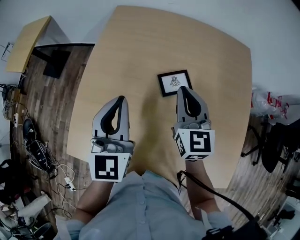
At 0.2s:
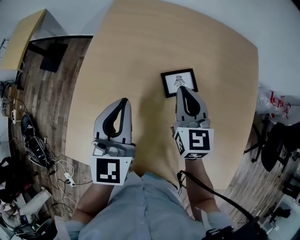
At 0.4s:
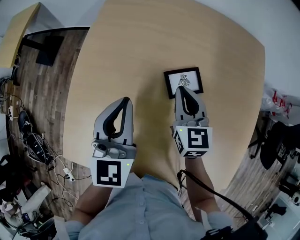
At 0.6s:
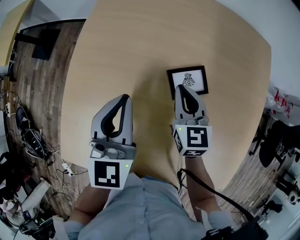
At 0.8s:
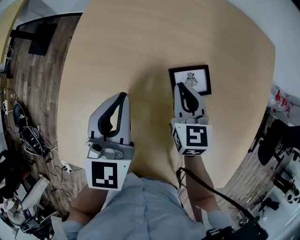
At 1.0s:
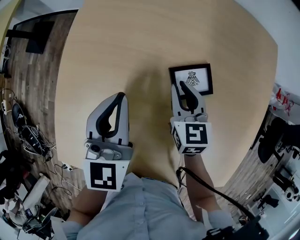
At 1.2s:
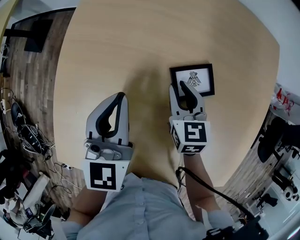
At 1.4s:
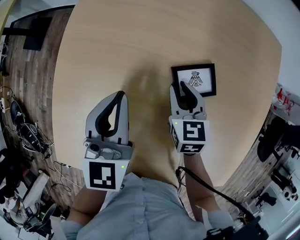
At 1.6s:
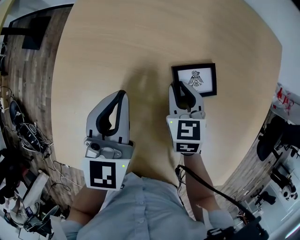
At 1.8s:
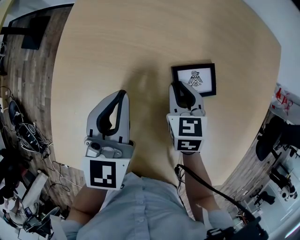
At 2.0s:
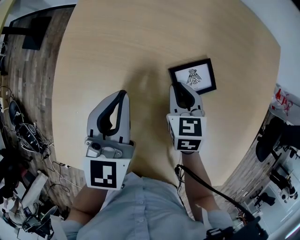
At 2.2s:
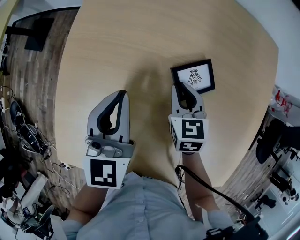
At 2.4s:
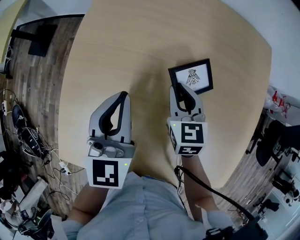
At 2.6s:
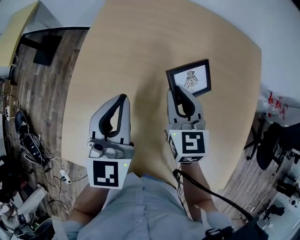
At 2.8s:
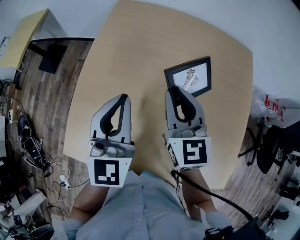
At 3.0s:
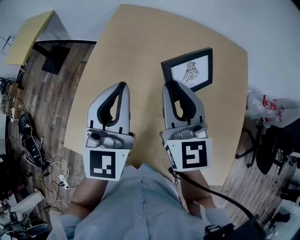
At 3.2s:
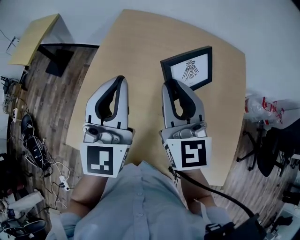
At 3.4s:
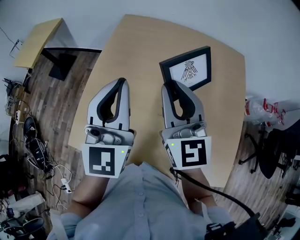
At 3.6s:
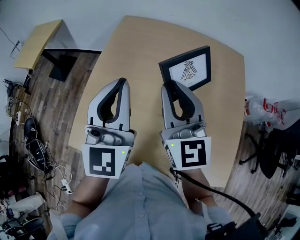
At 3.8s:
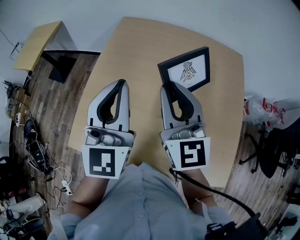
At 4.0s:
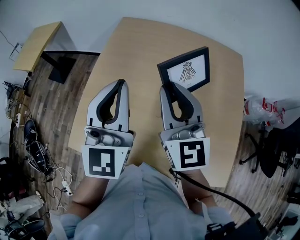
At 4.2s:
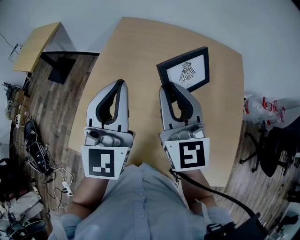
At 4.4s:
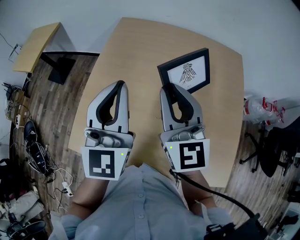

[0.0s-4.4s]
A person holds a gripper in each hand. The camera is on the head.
0.0s to 1.4s: The right gripper moves downward, some 20 cm, rotates approximately 30 degrees, and opens up; the left gripper goes some 15 cm downward and forward.
1.4s to 3.0s: The left gripper travels upward by about 15 cm, and rotates about 20 degrees. Meanwhile the right gripper shifts about 25 cm upward, and tips its fingers upward by about 40 degrees.
3.0s to 4.4s: The grippers move only a little.

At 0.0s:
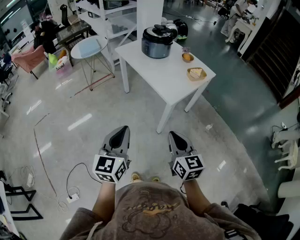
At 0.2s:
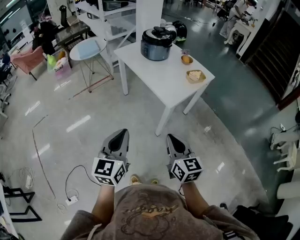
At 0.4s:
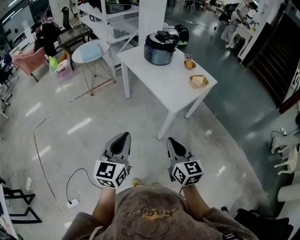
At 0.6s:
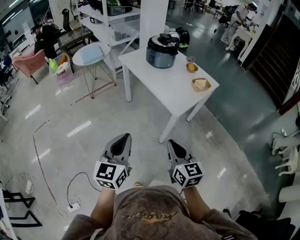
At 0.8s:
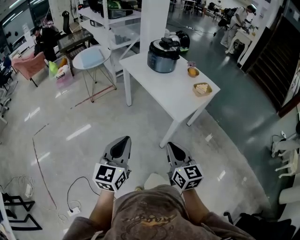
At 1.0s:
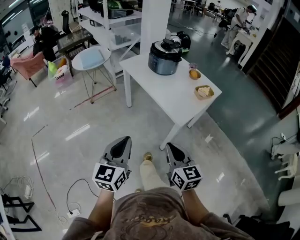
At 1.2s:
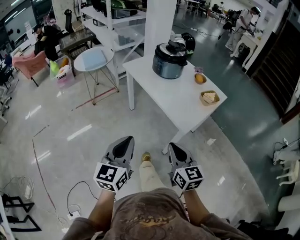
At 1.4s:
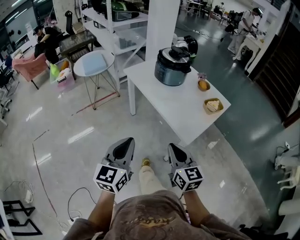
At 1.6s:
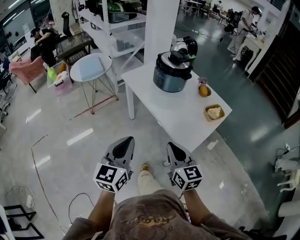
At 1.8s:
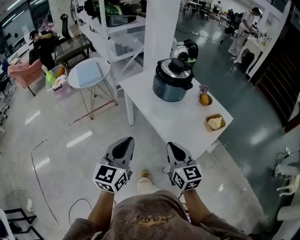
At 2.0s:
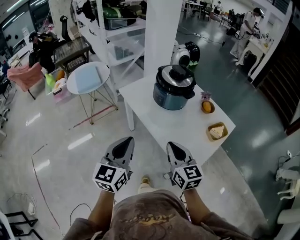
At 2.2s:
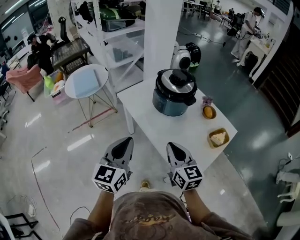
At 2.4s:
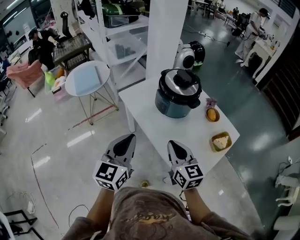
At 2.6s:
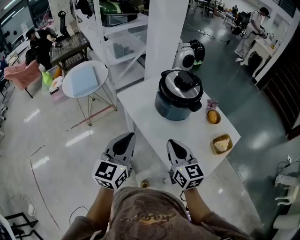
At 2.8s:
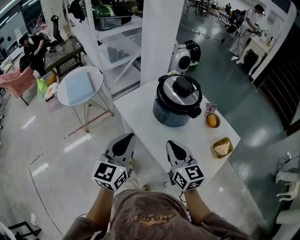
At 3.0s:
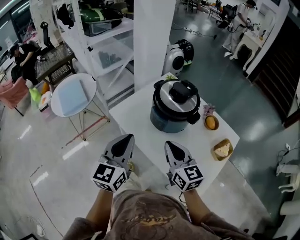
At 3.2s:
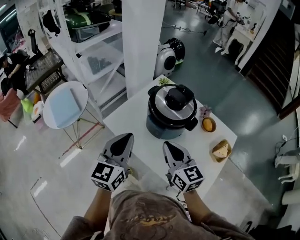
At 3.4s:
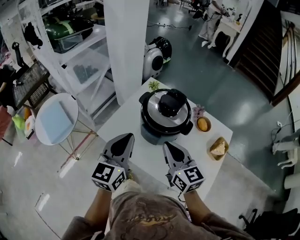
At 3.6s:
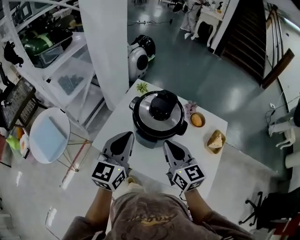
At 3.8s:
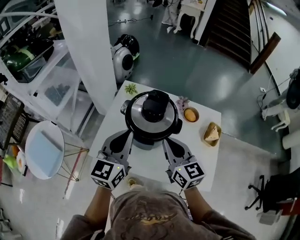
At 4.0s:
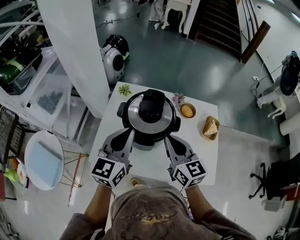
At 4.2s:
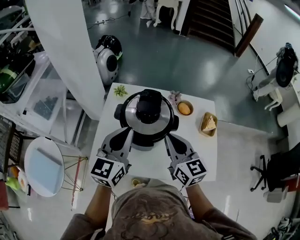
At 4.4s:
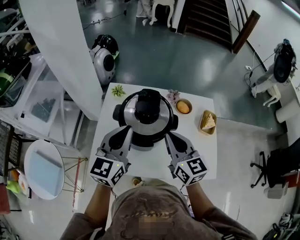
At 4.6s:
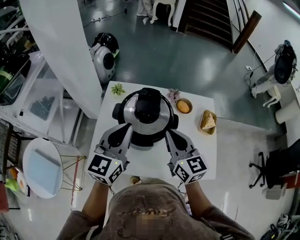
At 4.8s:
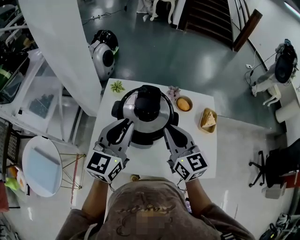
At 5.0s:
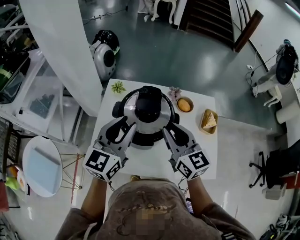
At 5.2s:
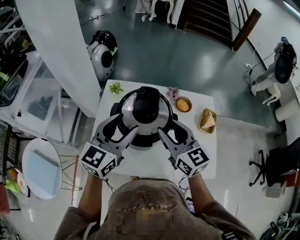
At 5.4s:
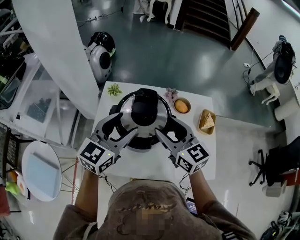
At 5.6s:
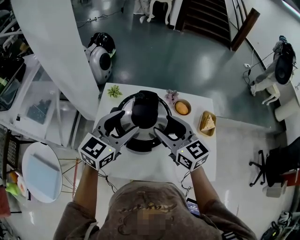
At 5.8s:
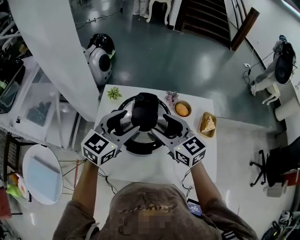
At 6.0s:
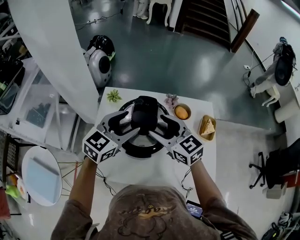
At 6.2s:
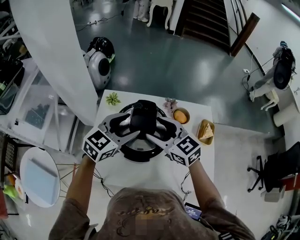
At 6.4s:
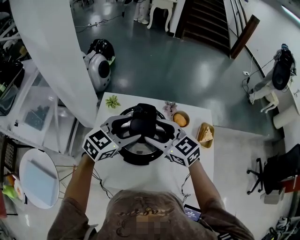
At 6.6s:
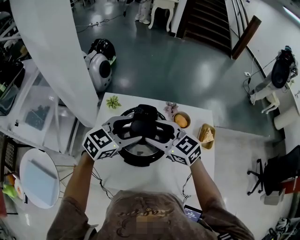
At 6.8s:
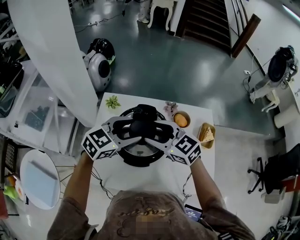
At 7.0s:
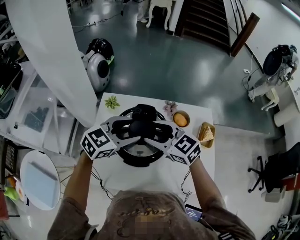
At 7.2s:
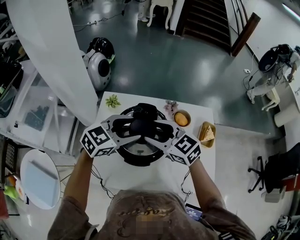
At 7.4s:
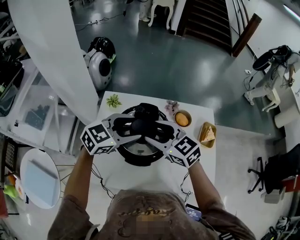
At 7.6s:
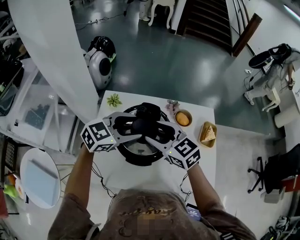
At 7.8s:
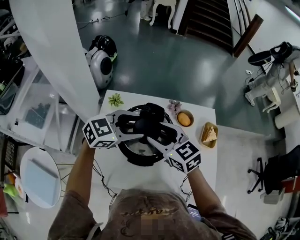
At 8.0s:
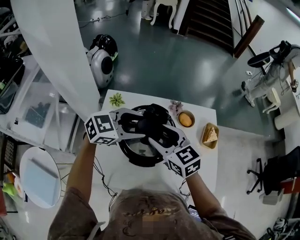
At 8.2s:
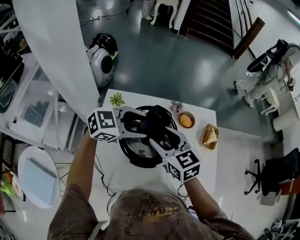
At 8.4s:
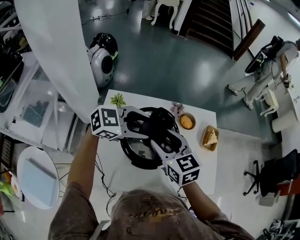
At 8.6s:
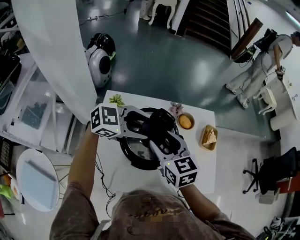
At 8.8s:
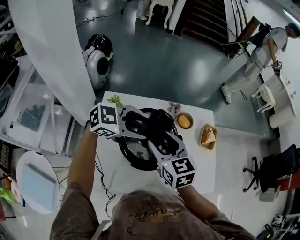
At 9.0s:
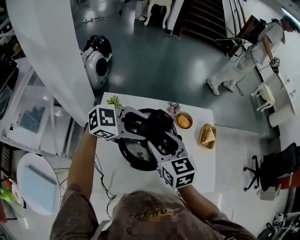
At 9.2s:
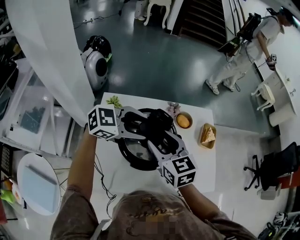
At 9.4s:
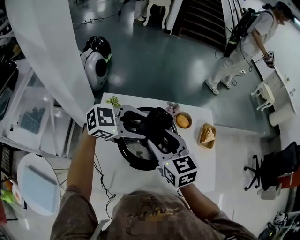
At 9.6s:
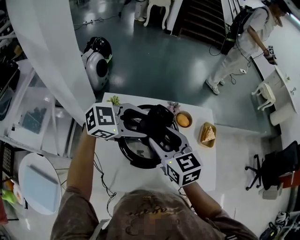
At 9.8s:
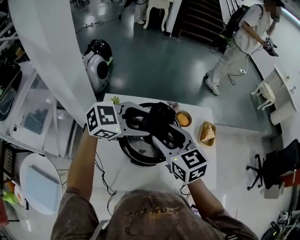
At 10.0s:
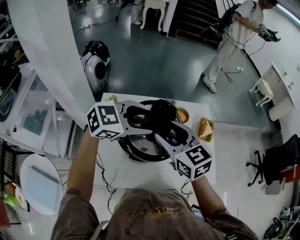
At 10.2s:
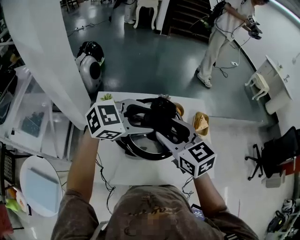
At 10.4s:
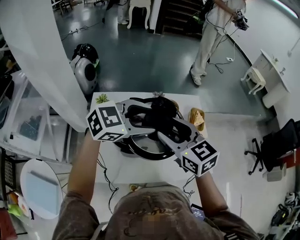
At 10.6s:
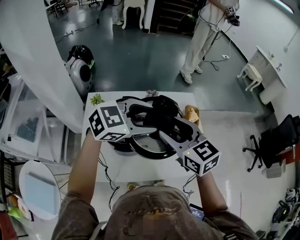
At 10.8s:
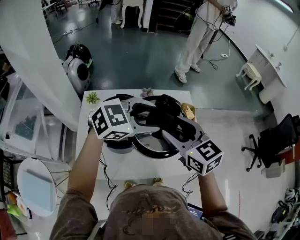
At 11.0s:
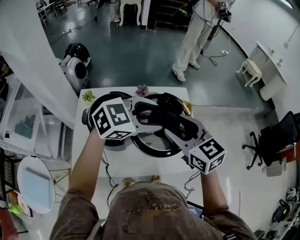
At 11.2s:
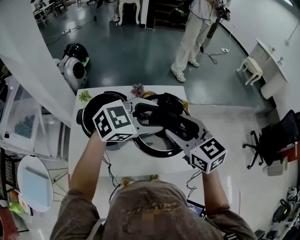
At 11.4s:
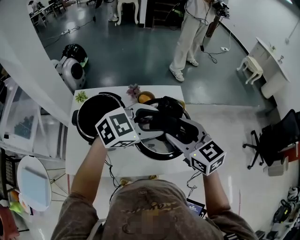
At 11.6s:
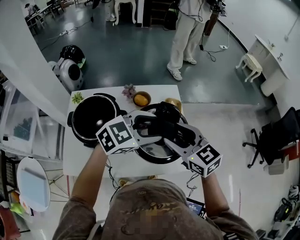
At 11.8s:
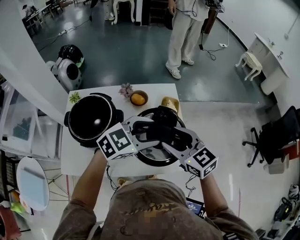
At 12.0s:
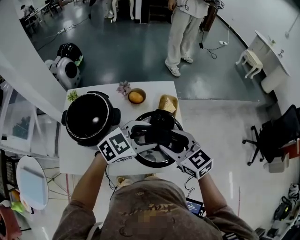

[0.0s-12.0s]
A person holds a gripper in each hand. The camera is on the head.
0.0s to 1.6s: The grippers both shift forward by about 25 cm.
1.6s to 3.0s: The two grippers go roughly 35 cm forward.
3.0s to 4.4s: The left gripper shifts by approximately 25 cm, and swivels about 40 degrees. The right gripper moves approximately 15 cm, and rotates some 40 degrees.
4.4s to 6.0s: The two grippers go approximately 10 cm forward. The left gripper turns by about 30 degrees, and opens its fingers, while the right gripper turns by roughly 20 degrees, and opens.
6.0s to 7.6s: The left gripper rotates roughly 20 degrees.
7.6s to 9.0s: The left gripper rotates some 20 degrees, while the right gripper rotates about 30 degrees.
9.0s to 10.4s: Both grippers travel together to the right and upward, some 10 cm.
10.4s to 12.0s: The two grippers go about 25 cm to the right.

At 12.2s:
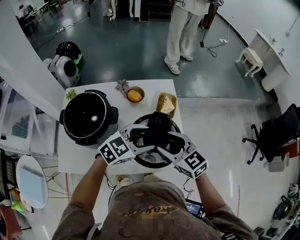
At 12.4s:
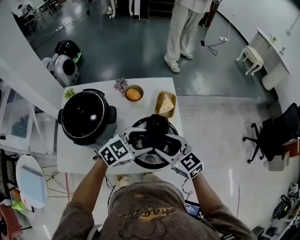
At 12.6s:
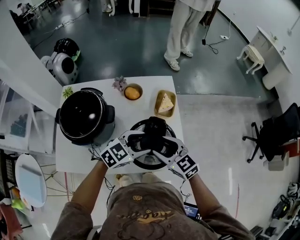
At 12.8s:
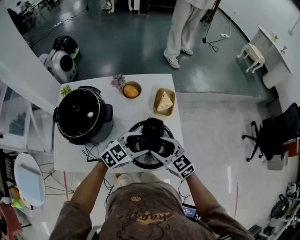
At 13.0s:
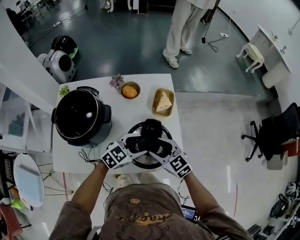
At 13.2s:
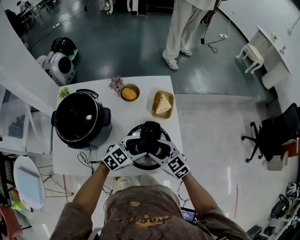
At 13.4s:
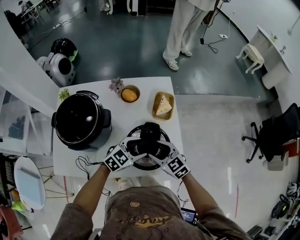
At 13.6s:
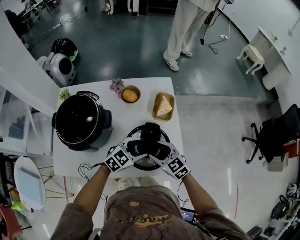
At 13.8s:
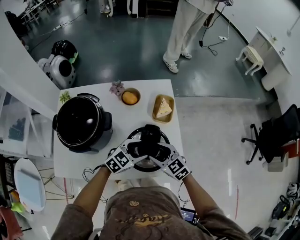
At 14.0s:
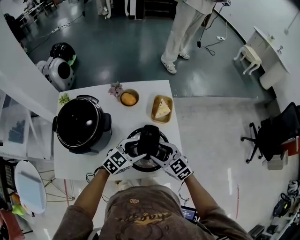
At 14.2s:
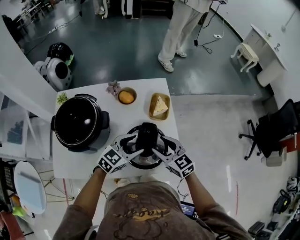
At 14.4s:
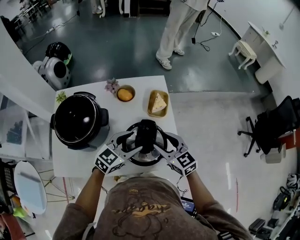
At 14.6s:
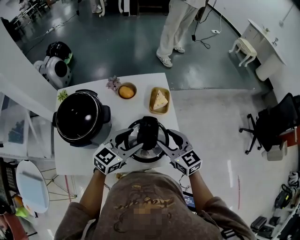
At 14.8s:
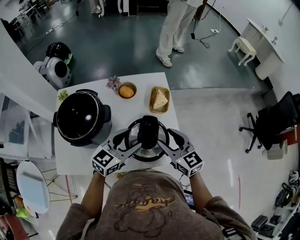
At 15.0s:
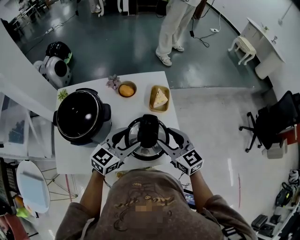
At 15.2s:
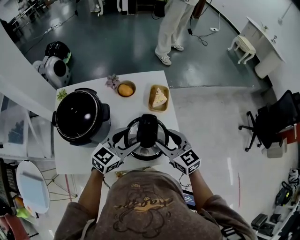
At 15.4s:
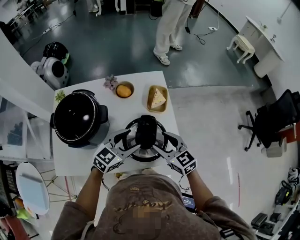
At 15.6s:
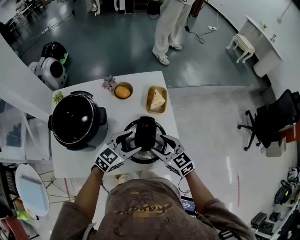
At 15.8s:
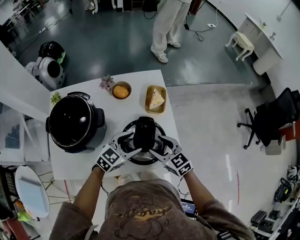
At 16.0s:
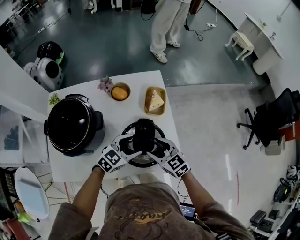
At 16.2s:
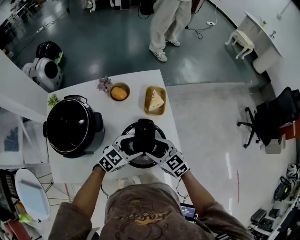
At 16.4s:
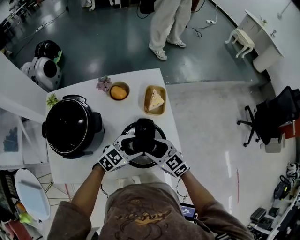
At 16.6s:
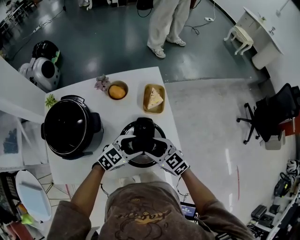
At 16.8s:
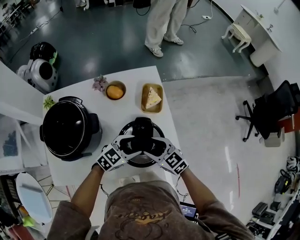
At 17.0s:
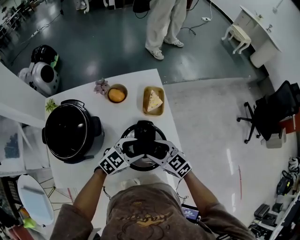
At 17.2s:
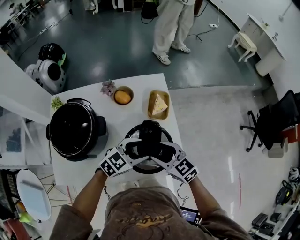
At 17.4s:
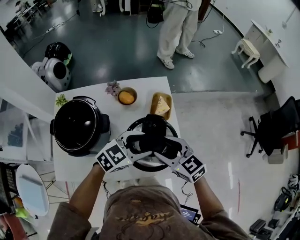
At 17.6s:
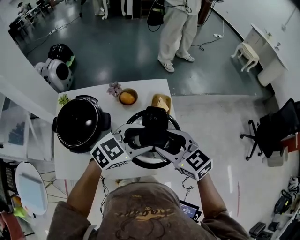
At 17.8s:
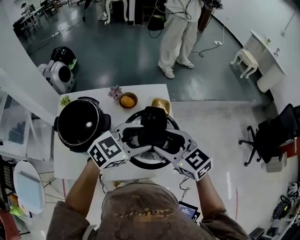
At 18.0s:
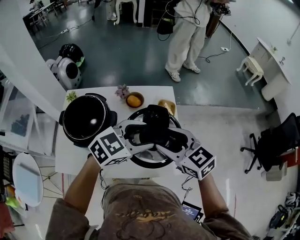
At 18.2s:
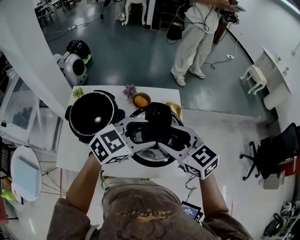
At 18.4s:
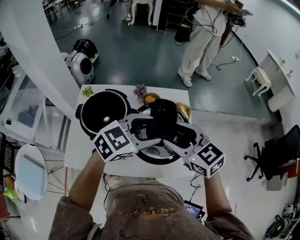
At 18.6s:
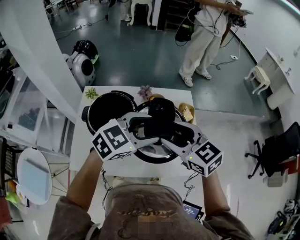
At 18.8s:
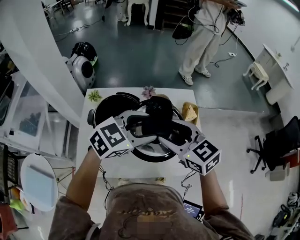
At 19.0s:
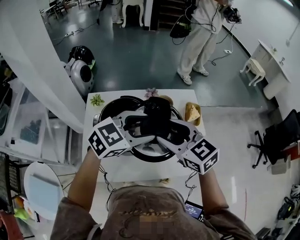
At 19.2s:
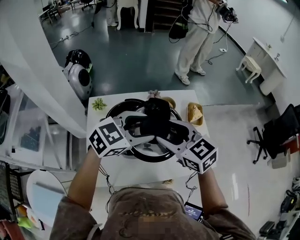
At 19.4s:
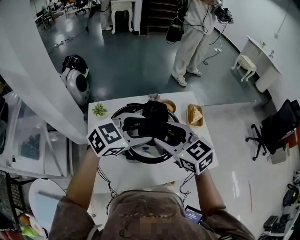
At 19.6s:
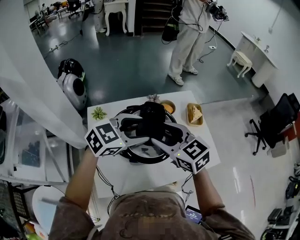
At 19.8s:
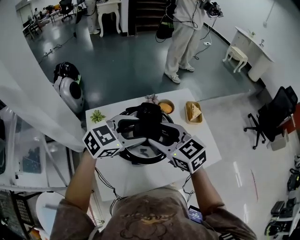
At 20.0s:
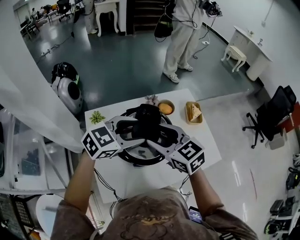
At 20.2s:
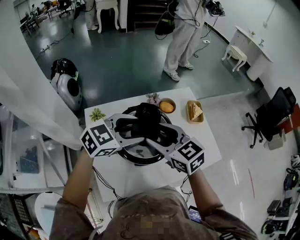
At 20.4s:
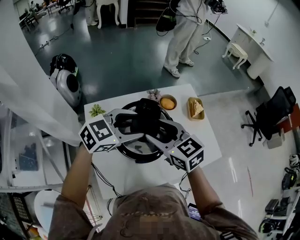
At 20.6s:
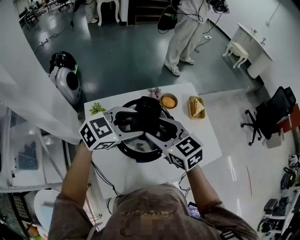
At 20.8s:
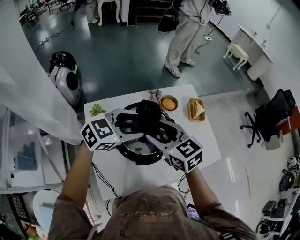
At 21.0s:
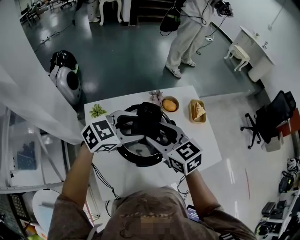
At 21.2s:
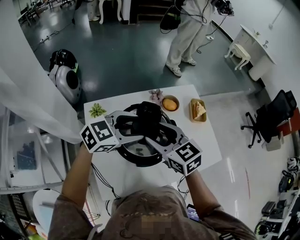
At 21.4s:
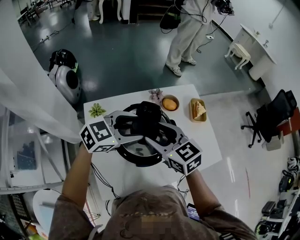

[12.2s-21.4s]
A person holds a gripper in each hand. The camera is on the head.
12.2s to 13.8s: The grippers both shift downward by about 15 cm.
13.8s to 15.2s: The two grippers go roughly 10 cm upward.
15.2s to 16.8s: Both grippers travel together downward, some 10 cm. The left gripper rotates about 20 degrees.
16.8s to 18.4s: The grippers both shift upward by roughly 25 cm.
18.4s to 19.8s: The two grippers go approximately 25 cm to the left.
19.8s to 21.4s: There are only small adjustments of the grippers.
